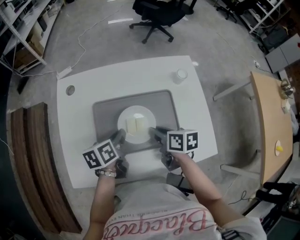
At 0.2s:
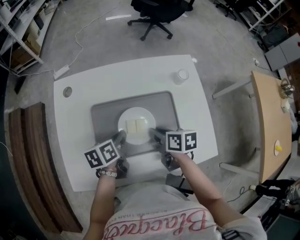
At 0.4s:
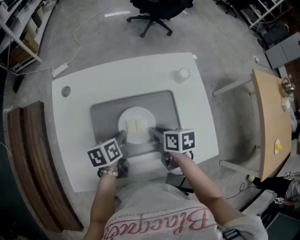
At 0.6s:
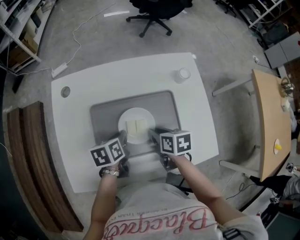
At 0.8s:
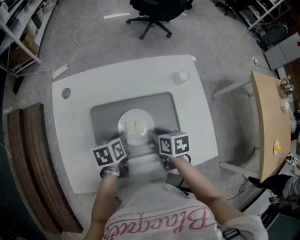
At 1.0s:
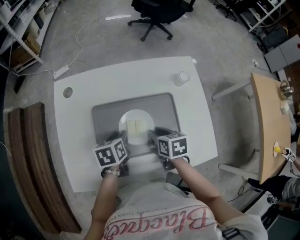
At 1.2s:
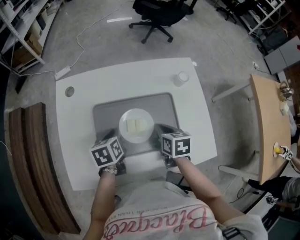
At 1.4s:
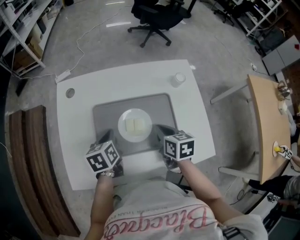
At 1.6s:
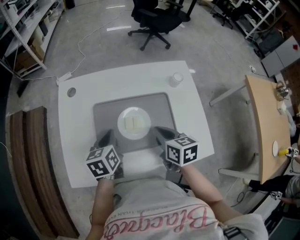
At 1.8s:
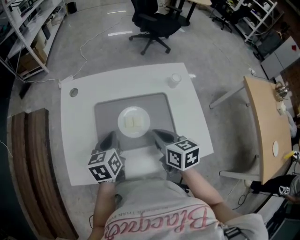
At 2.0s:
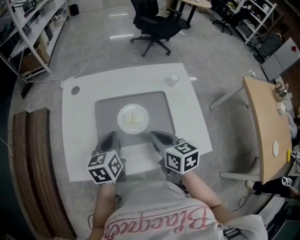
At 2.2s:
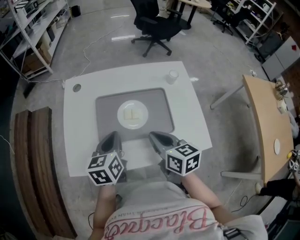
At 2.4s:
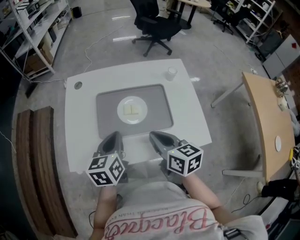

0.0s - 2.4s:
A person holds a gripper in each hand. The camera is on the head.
0.0s - 1.2s: The right gripper rotates roughly 20 degrees, while the left gripper rotates about 20 degrees.
1.2s - 2.4s: Both grippers move upward and backward, some 15 cm. The right gripper turns by roughly 30 degrees, while the left gripper changes its angle by approximately 30 degrees.

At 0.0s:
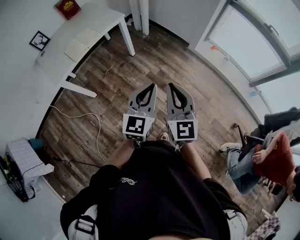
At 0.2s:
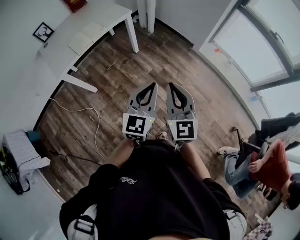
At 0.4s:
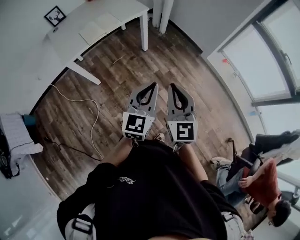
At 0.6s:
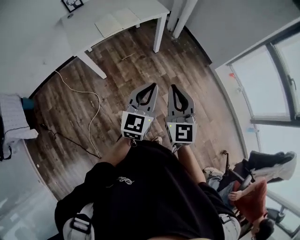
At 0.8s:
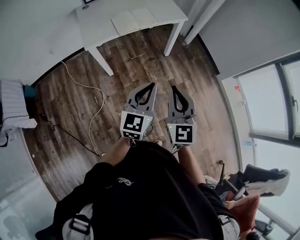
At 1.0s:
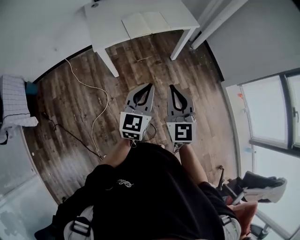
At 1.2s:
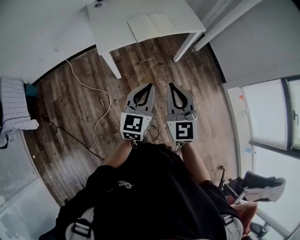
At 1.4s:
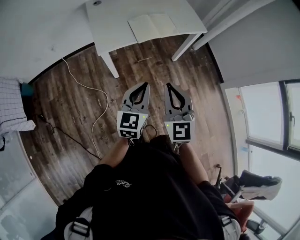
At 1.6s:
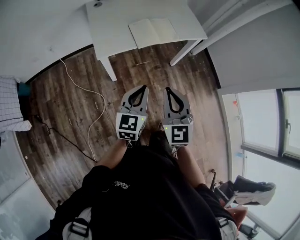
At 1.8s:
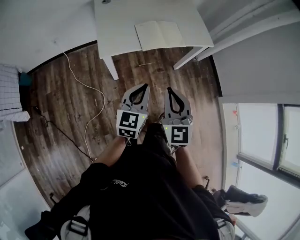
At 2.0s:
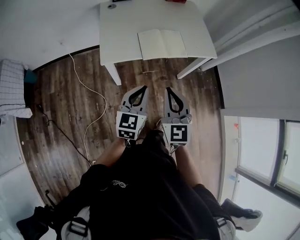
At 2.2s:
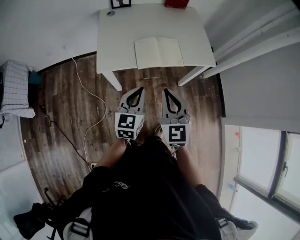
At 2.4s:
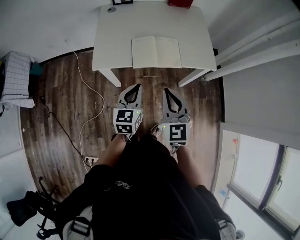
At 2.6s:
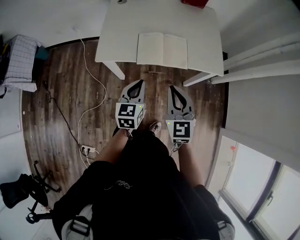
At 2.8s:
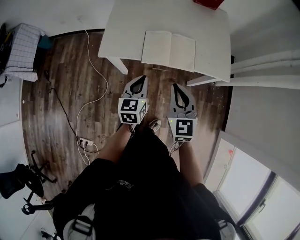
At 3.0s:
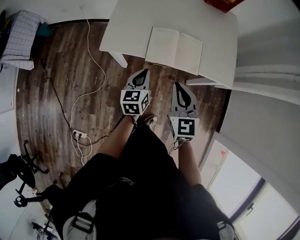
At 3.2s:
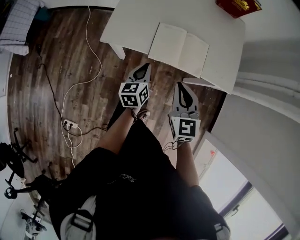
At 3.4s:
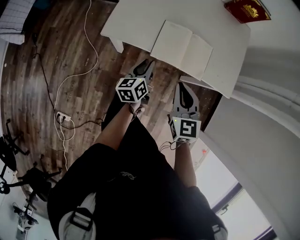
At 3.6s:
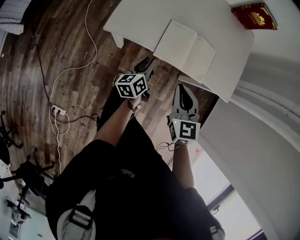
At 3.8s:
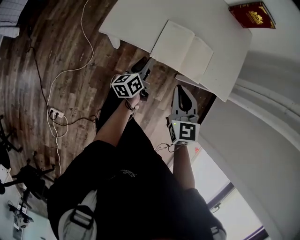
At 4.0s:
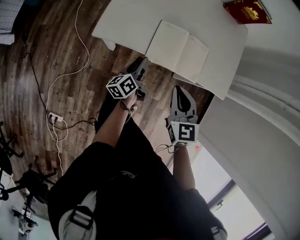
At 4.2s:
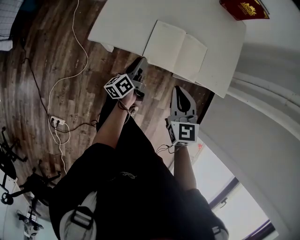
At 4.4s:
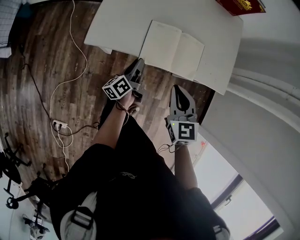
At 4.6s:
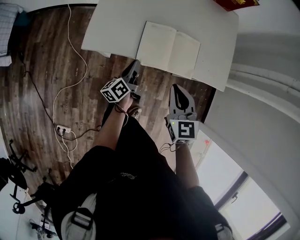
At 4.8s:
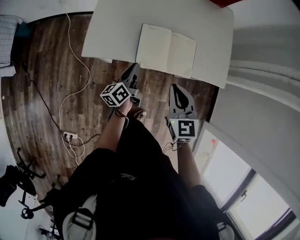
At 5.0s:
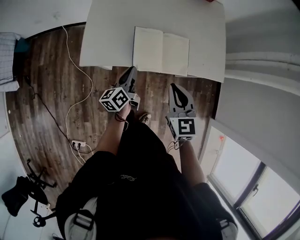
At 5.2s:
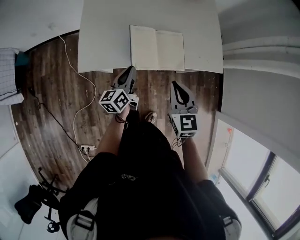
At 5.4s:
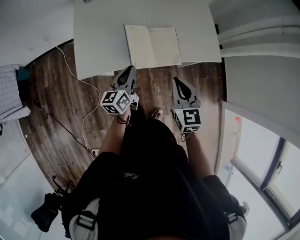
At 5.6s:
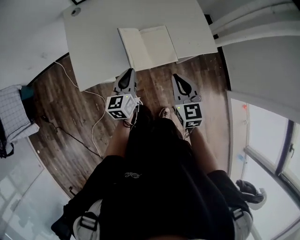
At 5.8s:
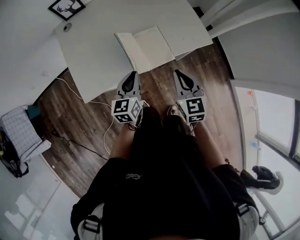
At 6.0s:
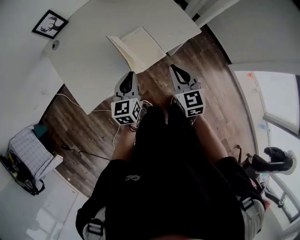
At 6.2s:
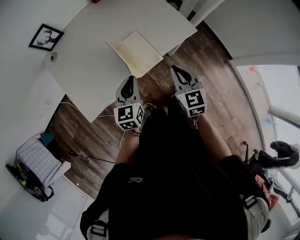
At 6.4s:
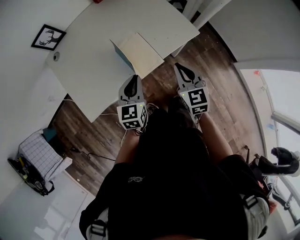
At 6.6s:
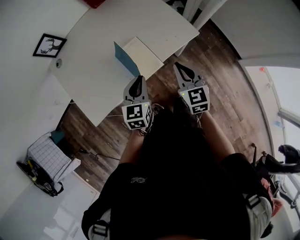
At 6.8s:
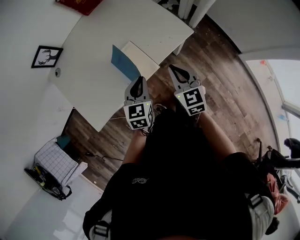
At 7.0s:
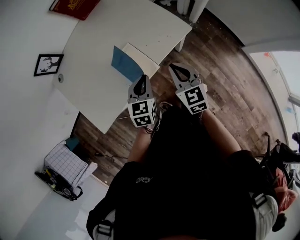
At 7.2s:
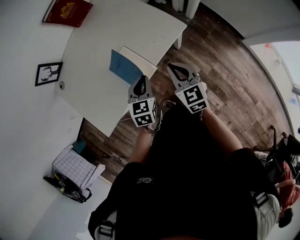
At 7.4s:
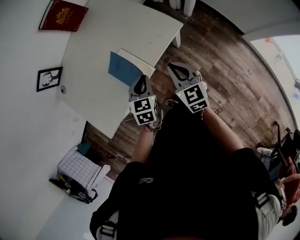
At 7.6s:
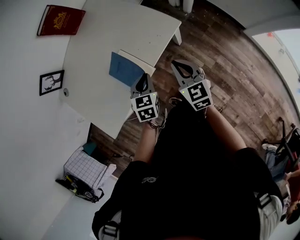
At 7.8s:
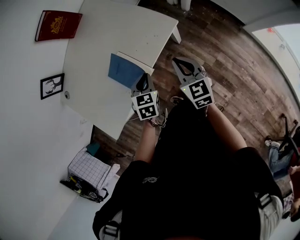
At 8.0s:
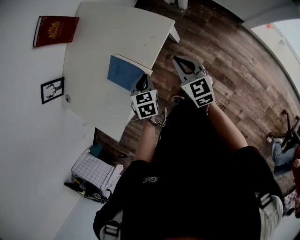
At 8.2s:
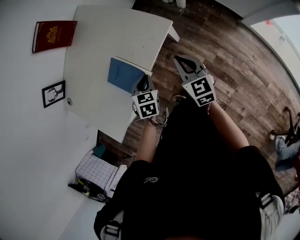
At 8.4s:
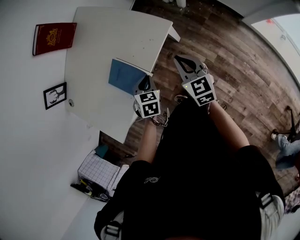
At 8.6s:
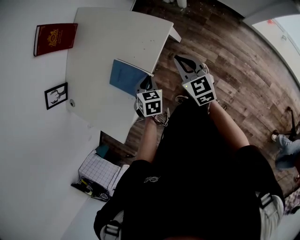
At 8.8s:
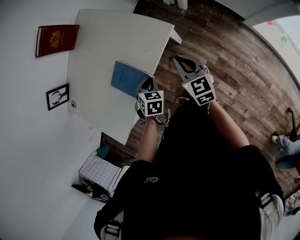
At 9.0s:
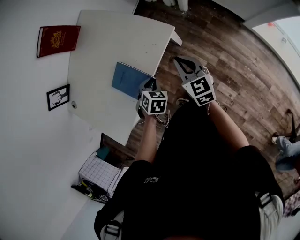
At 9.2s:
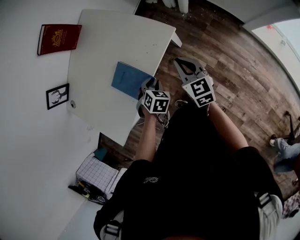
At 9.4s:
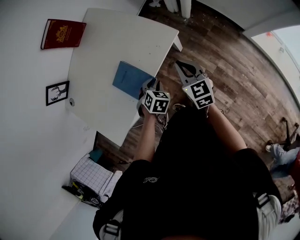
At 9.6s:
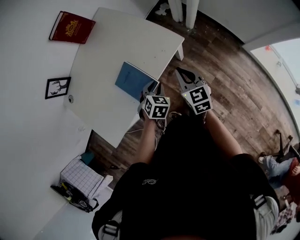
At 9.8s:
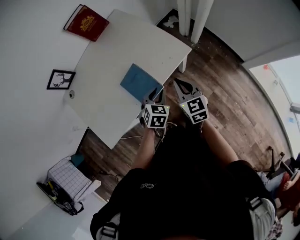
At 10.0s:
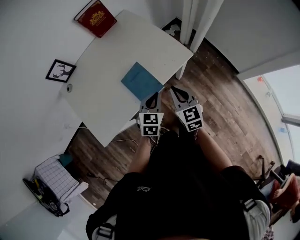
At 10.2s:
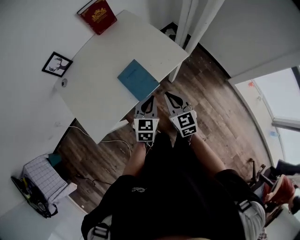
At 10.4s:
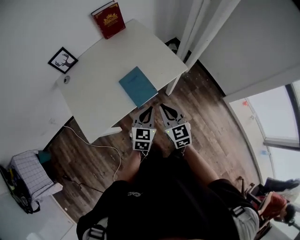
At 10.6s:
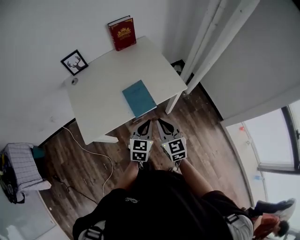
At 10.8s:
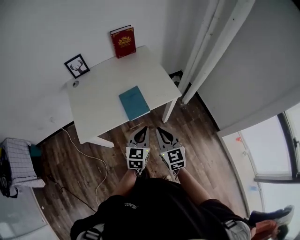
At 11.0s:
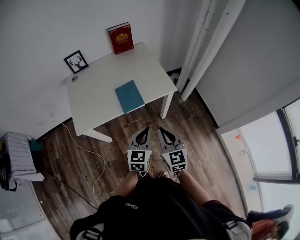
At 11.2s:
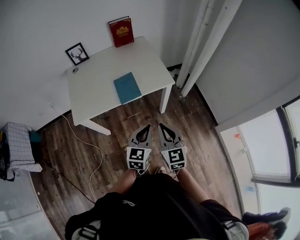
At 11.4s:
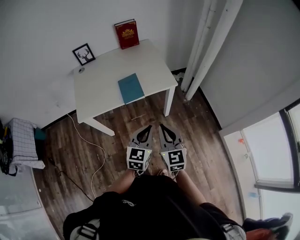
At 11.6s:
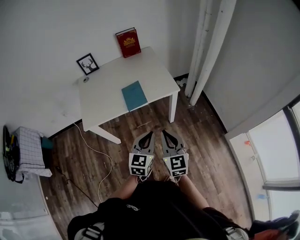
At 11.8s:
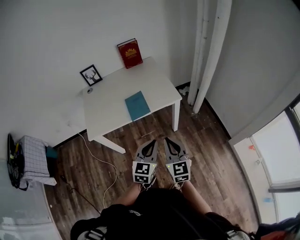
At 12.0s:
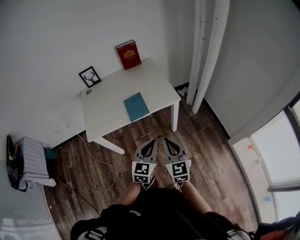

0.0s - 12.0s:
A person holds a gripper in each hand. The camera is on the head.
0.0s - 1.6s: The pair of grippers is taken roughly 40 cm. The right gripper swivels approximately 30 degrees; the left gripper turns by approximately 30 degrees.
1.6s - 3.0s: The right gripper shifts by some 30 cm, and changes its angle by about 30 degrees, while the left gripper shifts by approximately 25 cm, and changes its angle by roughly 40 degrees.
3.0s - 4.4s: The left gripper goes some 15 cm downward and forward, and rolls counterclockwise, seen from behind, by approximately 50 degrees; the right gripper ends up some 5 cm from where it was.
4.4s - 6.0s: The right gripper ends up some 10 cm from where it was, and rotates some 30 degrees. The left gripper is displaced upward by some 15 cm, and rotates around the line of its fingers by about 60 degrees, clockwise from behind.
6.0s - 7.6s: The left gripper travels to the right, forward and downward by some 15 cm, and changes its angle by some 40 degrees; the right gripper heads to the right, downward and forward, covering roughly 15 cm.
7.6s - 9.0s: The right gripper is displaced to the right by some 5 cm, while the left gripper heads downward, covering some 5 cm, and rotates about 30 degrees.
9.0s - 10.4s: The left gripper heads upward and backward, covering about 15 cm, and tips its fingers upward by about 40 degrees. Meanwhile the right gripper travels to the left, backward and upward by about 20 cm, and swivels some 20 degrees.
10.4s - 12.0s: Both grippers travel together backward, to the right and upward, about 20 cm.

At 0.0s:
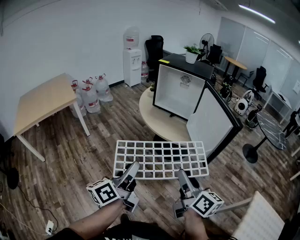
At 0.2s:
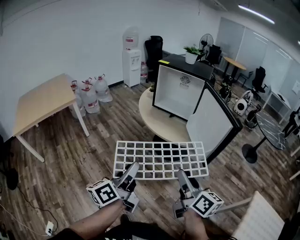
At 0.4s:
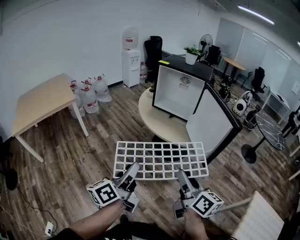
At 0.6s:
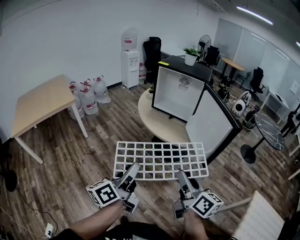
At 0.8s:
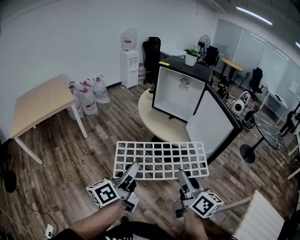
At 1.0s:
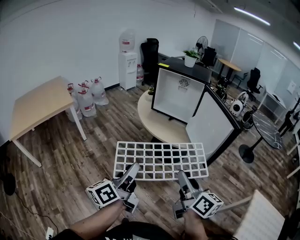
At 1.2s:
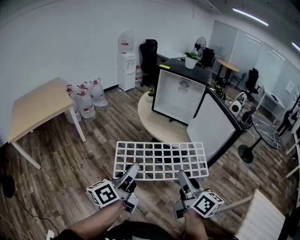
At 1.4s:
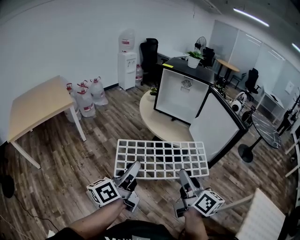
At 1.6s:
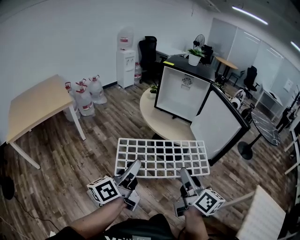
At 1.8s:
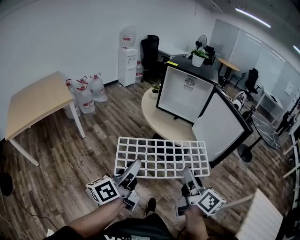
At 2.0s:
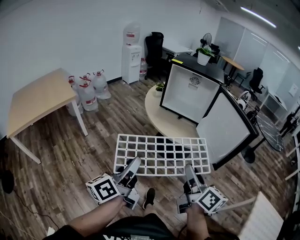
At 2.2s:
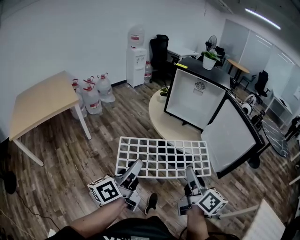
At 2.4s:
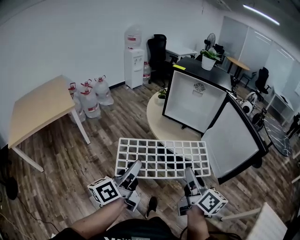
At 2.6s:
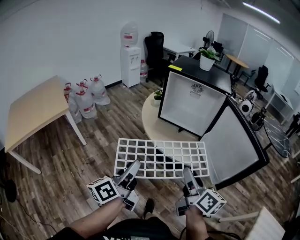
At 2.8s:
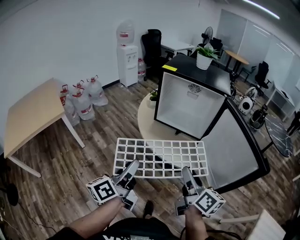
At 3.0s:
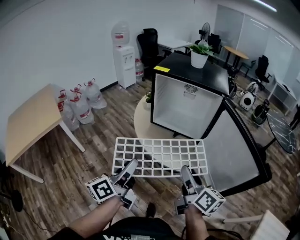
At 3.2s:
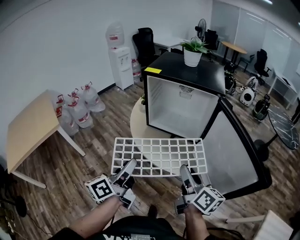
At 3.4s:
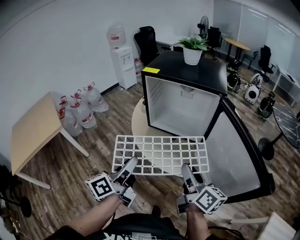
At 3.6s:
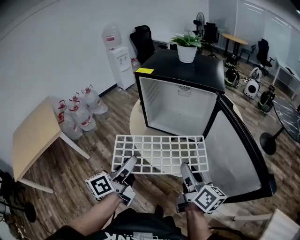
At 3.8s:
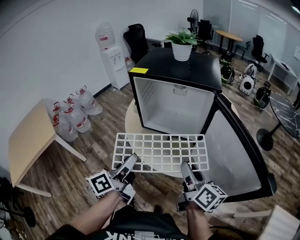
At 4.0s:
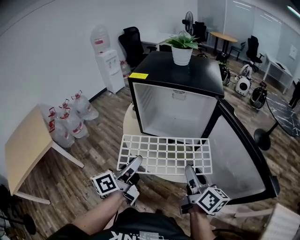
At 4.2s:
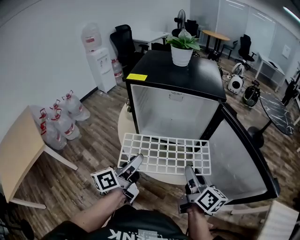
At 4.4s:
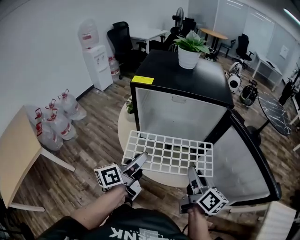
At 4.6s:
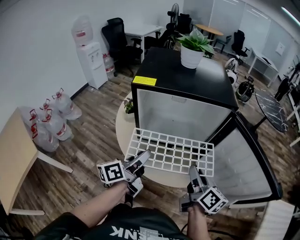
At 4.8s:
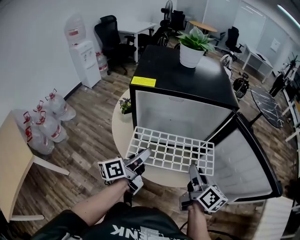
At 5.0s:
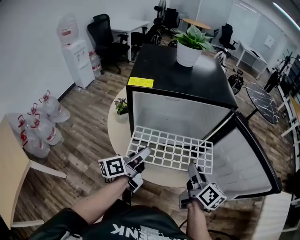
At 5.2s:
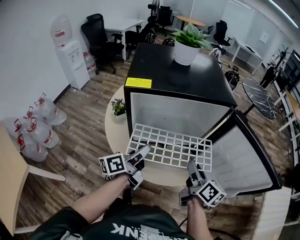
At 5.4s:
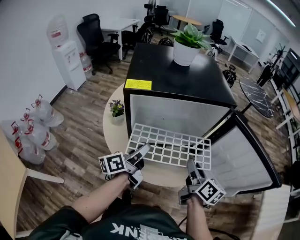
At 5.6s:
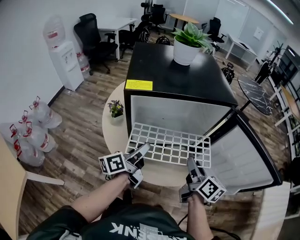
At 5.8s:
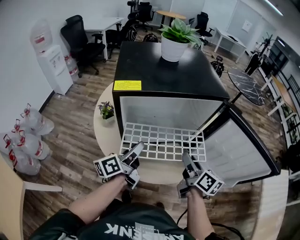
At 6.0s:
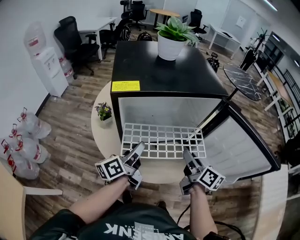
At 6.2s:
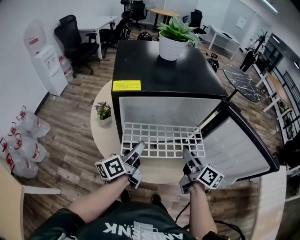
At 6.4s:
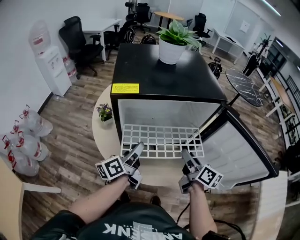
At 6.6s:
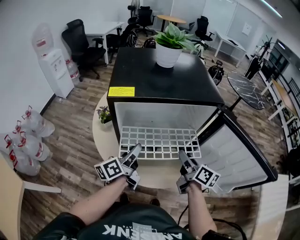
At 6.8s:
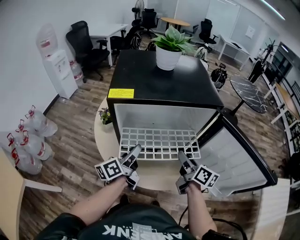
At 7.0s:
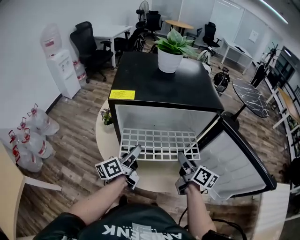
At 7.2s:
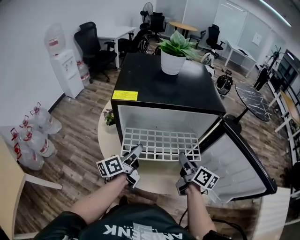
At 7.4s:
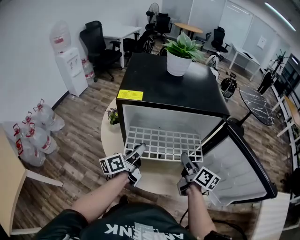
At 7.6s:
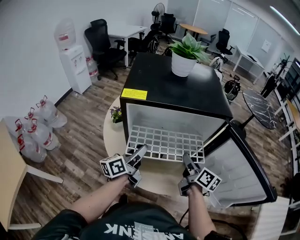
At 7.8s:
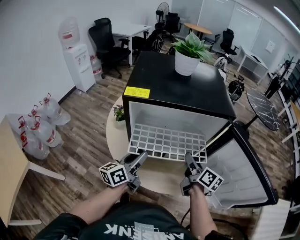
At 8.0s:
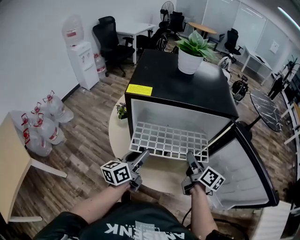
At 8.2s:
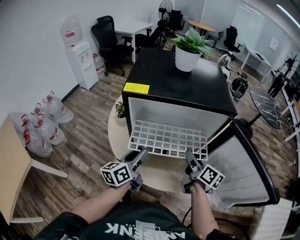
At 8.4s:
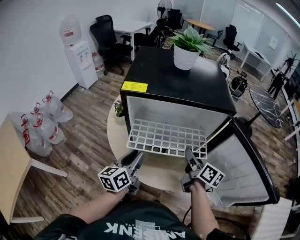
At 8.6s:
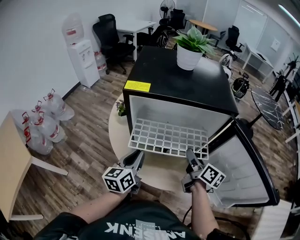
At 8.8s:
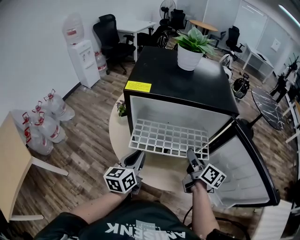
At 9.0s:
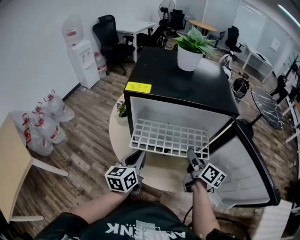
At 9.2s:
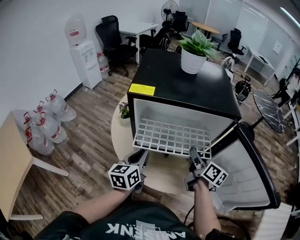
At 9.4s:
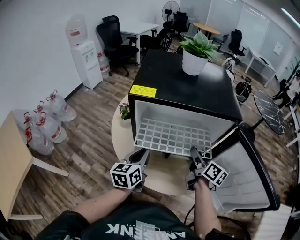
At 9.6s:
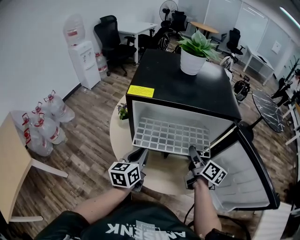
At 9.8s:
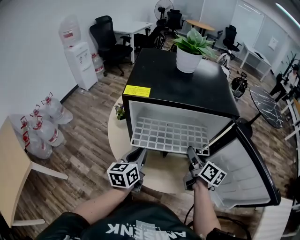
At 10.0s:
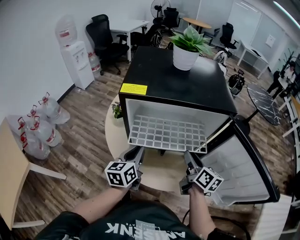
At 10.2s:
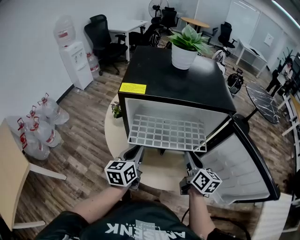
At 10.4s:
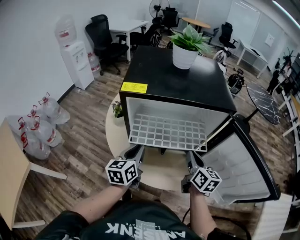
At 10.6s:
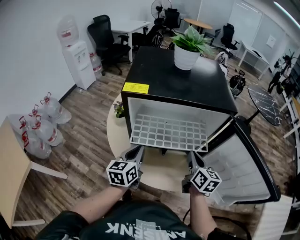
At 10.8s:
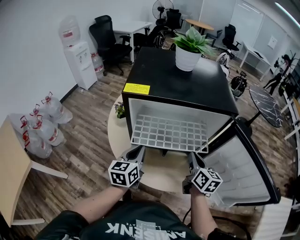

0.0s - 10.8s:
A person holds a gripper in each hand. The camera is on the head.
0.0s - 1.6s: Both grippers travel together to the left, some 10 cm.
1.6s - 3.0s: Both grippers move forward, some 30 cm.
3.0s - 4.6s: The left gripper moves roughly 25 cm, and rotates about 30 degrees. Meanwhile the right gripper changes place by about 20 cm, and turns by approximately 20 degrees.
4.6s - 6.2s: Both grippers move forward, about 10 cm.
6.2s - 7.8s: The left gripper changes its angle by some 20 degrees. The right gripper heads forward, covering about 5 cm.
7.8s - 9.2s: The left gripper swivels roughly 30 degrees.
9.2s - 10.8s: The right gripper changes its angle by some 20 degrees, and closes up.
